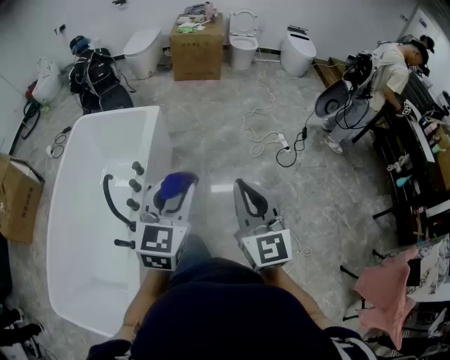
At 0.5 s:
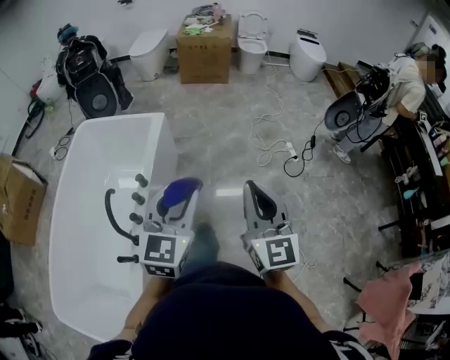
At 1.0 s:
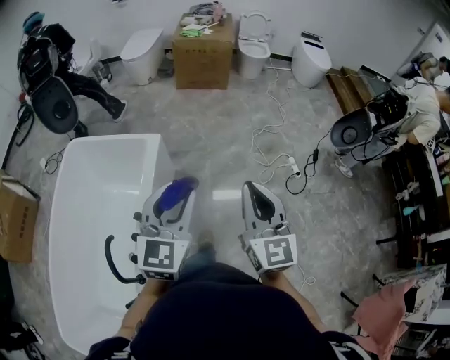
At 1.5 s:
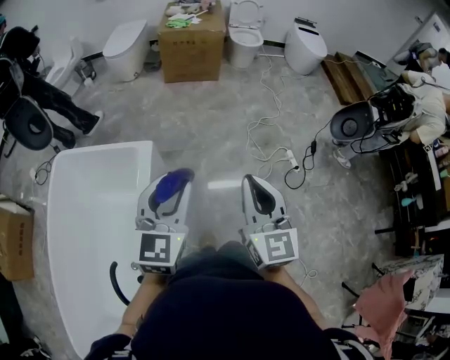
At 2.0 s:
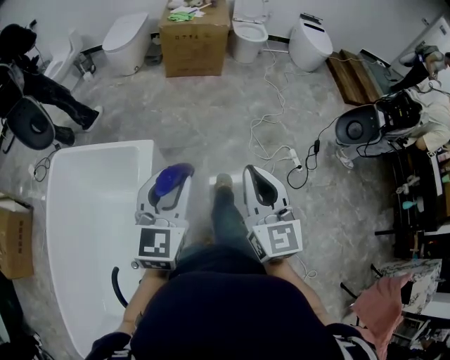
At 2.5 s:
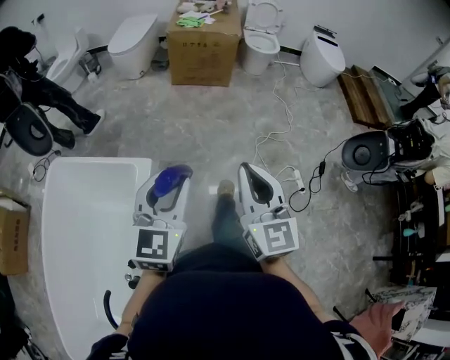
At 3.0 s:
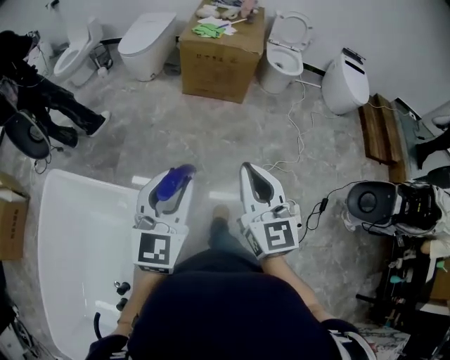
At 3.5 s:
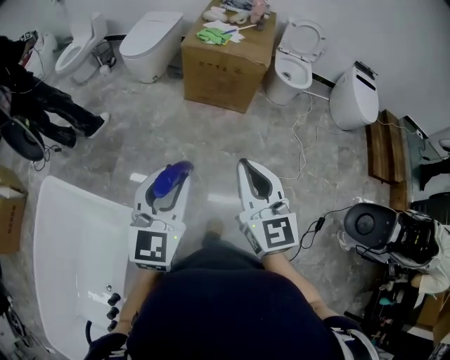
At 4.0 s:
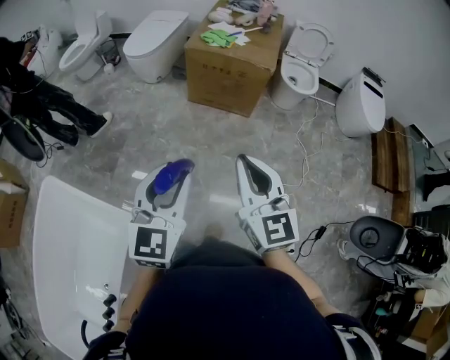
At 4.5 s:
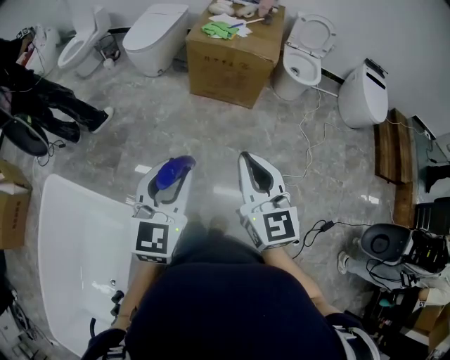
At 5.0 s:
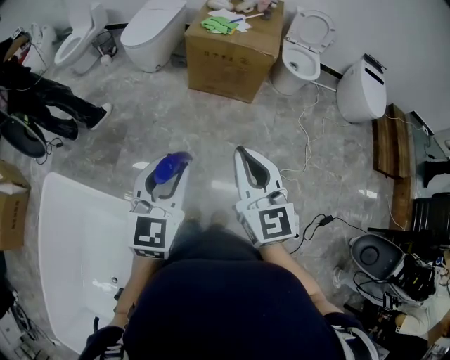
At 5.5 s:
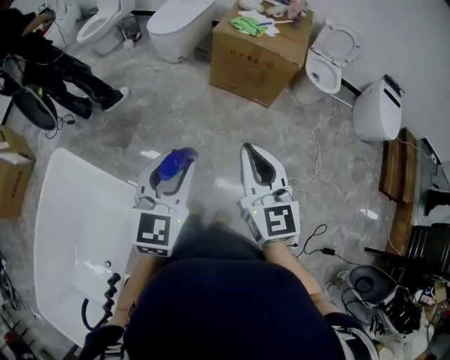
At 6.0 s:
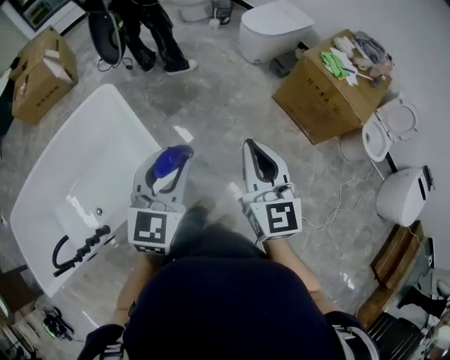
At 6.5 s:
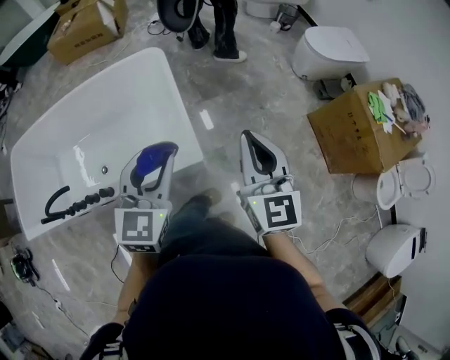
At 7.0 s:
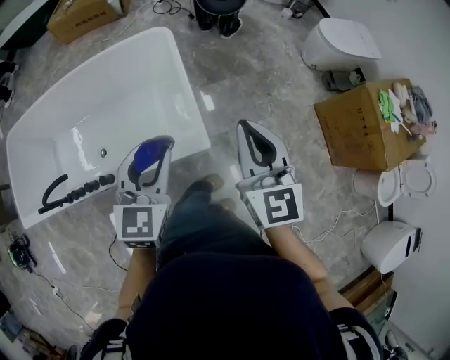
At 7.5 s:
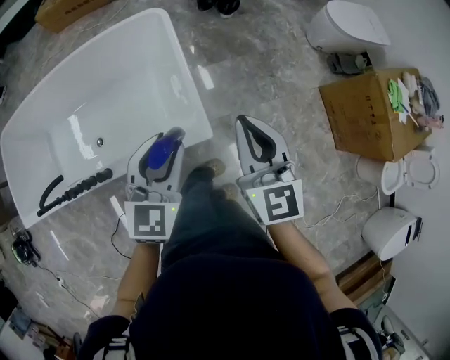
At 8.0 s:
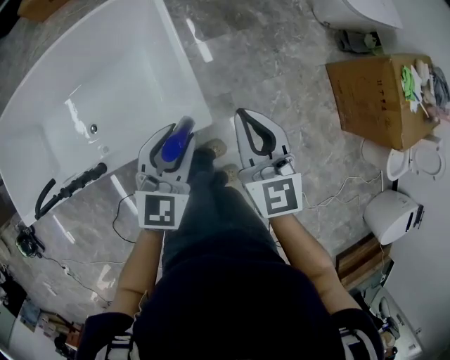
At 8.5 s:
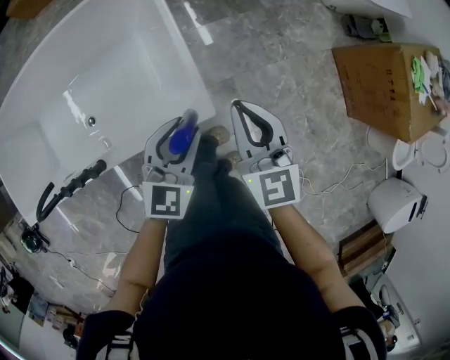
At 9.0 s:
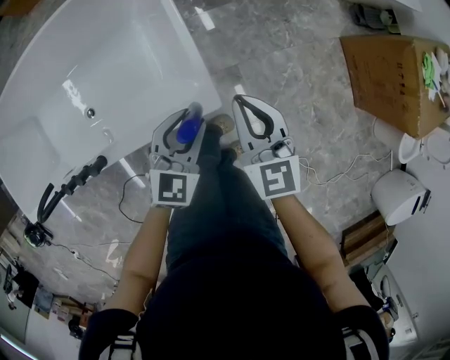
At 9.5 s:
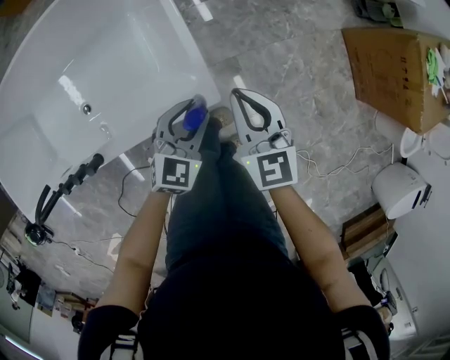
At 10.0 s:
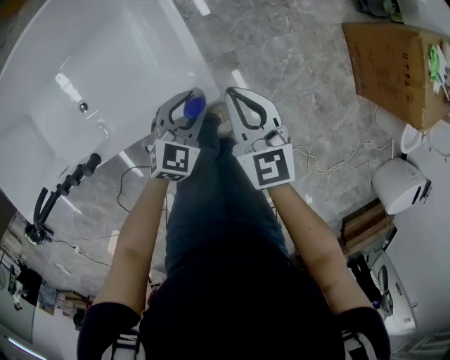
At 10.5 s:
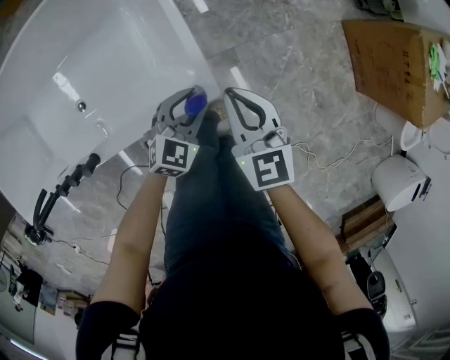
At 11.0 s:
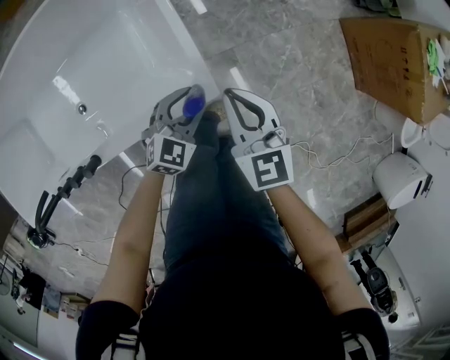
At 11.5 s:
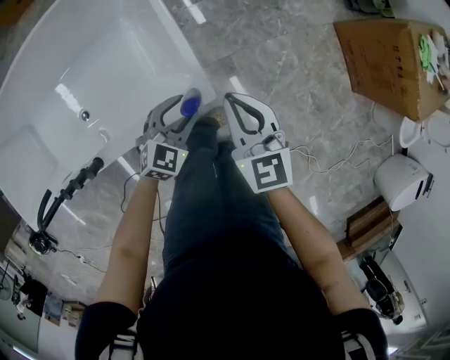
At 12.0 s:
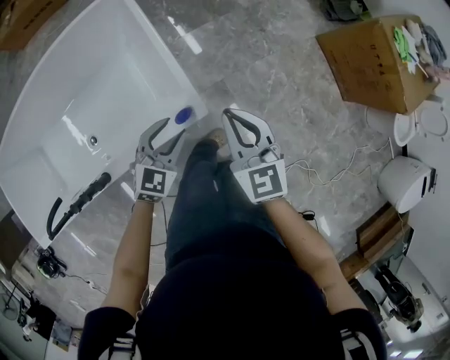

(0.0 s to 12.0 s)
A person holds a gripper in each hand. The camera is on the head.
0.0 s - 2.0 s: The two grippers travel together, forward, roughly 50 cm.
2.0 s - 4.0 s: The two grippers travel together, forward, about 50 cm. The right gripper changes its angle by about 20 degrees.
4.0 s - 6.0 s: The right gripper shifts by roughly 20 cm, and rotates approximately 30 degrees. Meanwhile the left gripper changes place by roughly 20 cm, and swivels about 30 degrees.
6.0 s - 8.0 s: The left gripper is displaced downward by roughly 15 cm. Meanwhile the right gripper moves approximately 25 cm, and turns by approximately 30 degrees.
8.0 s - 10.0 s: The two grippers go some 20 cm downward.
10.0 s - 12.0 s: Both grippers travel together upward, about 10 cm.

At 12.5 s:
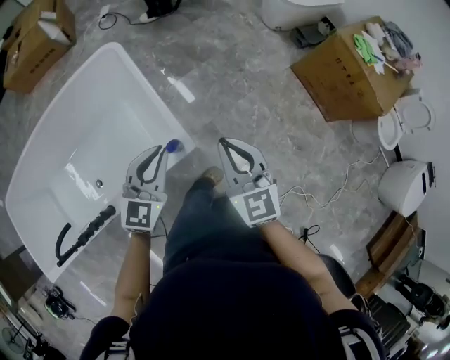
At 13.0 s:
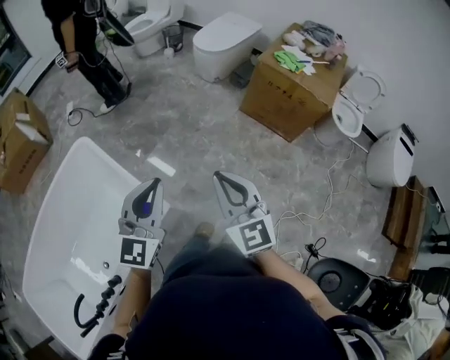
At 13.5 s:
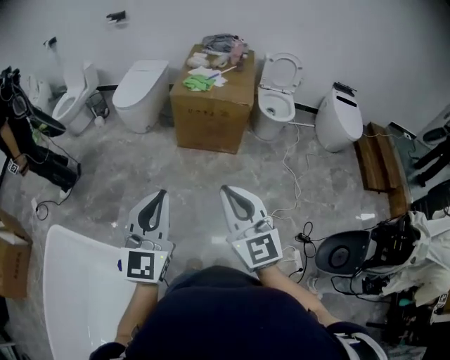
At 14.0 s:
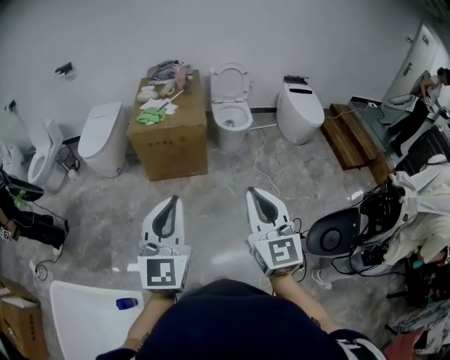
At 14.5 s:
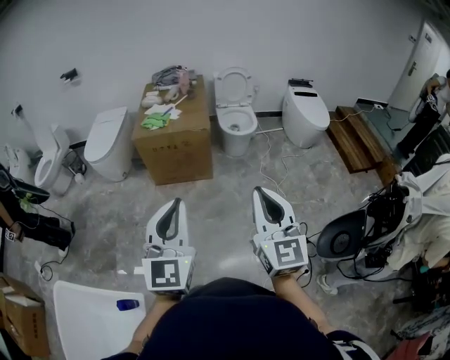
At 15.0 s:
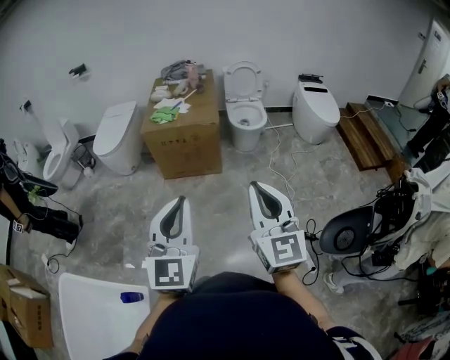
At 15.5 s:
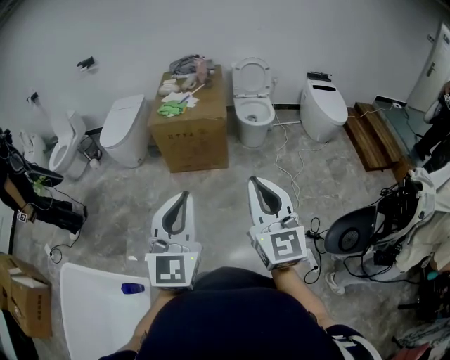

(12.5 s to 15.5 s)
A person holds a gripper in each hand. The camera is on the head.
12.5 s - 14.0 s: The two grippers travel together, some 50 cm. The left gripper swivels some 50 degrees. Meanwhile the right gripper turns by roughly 70 degrees.
14.0 s - 15.5 s: The grippers stay close to where they were, moving slightly.

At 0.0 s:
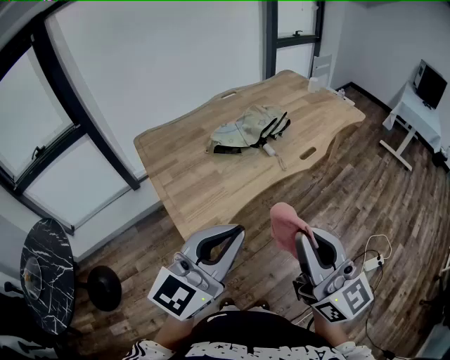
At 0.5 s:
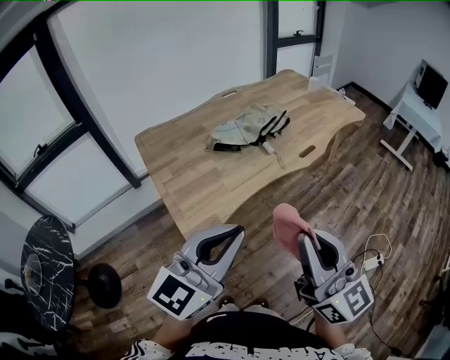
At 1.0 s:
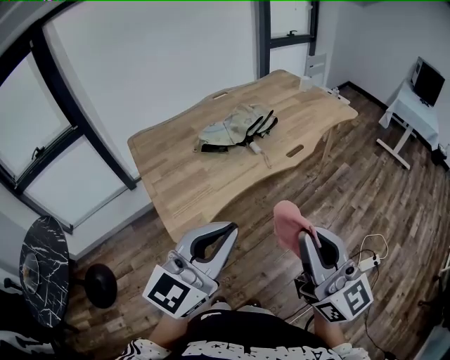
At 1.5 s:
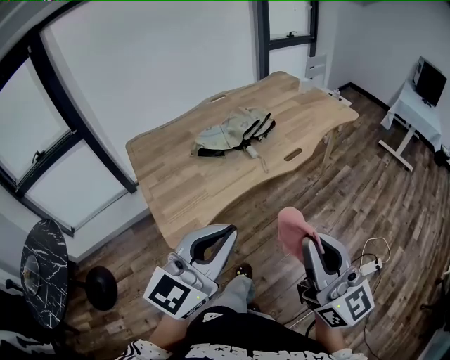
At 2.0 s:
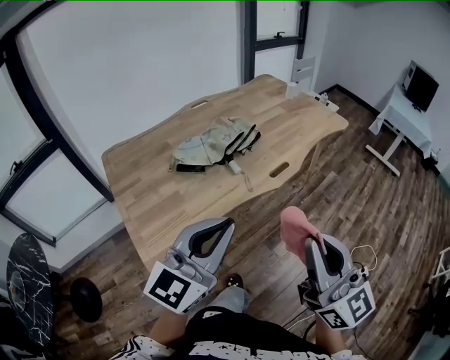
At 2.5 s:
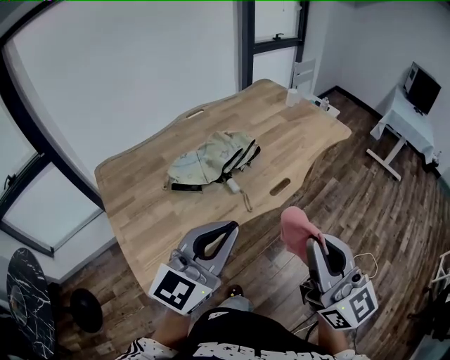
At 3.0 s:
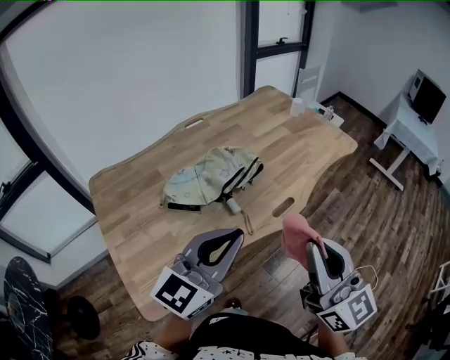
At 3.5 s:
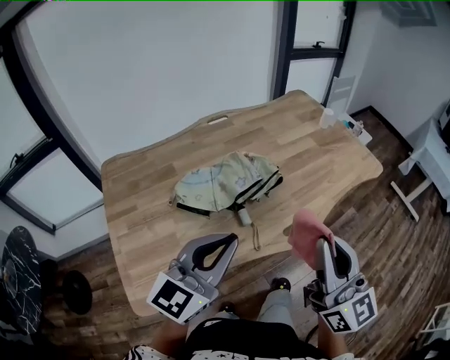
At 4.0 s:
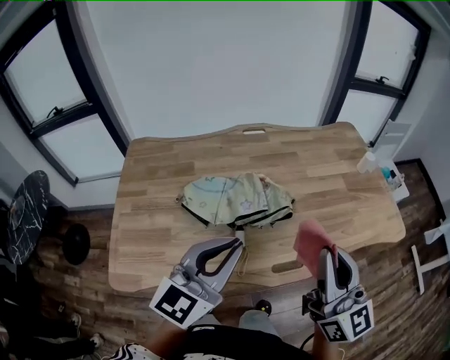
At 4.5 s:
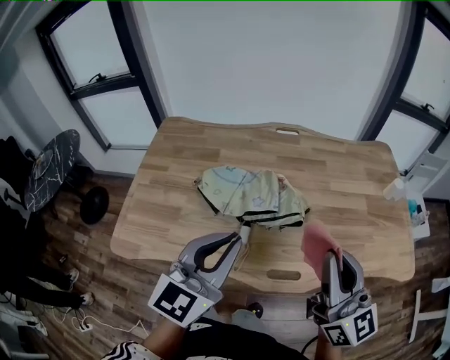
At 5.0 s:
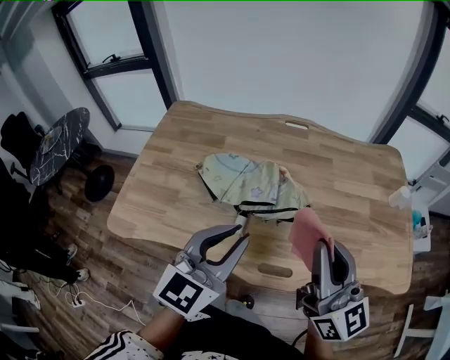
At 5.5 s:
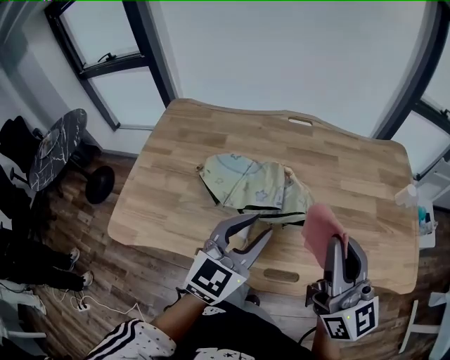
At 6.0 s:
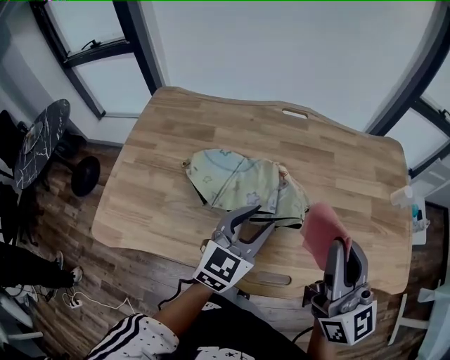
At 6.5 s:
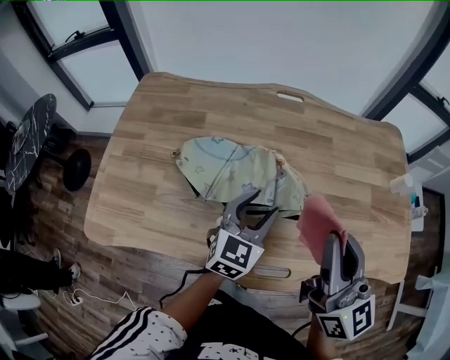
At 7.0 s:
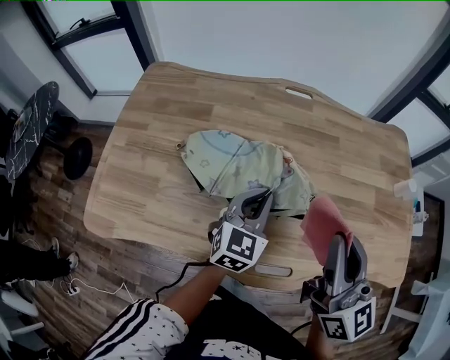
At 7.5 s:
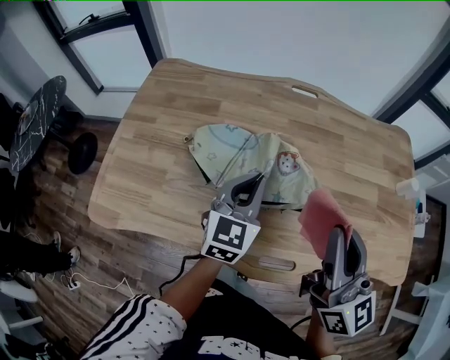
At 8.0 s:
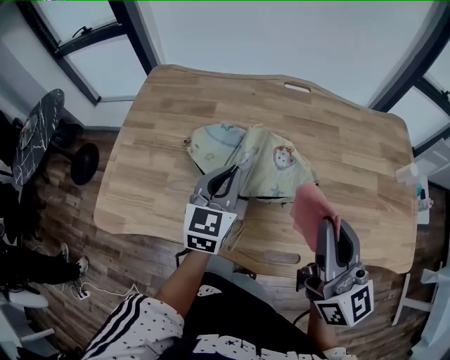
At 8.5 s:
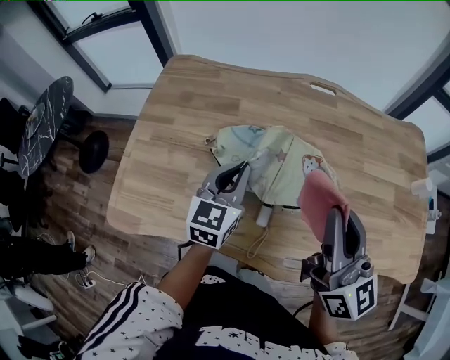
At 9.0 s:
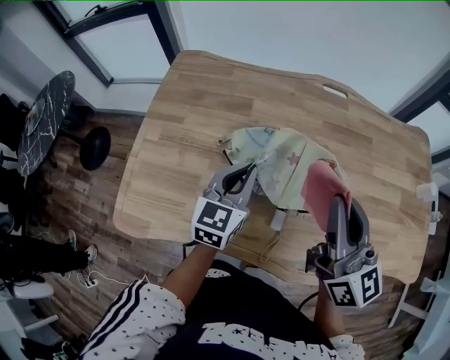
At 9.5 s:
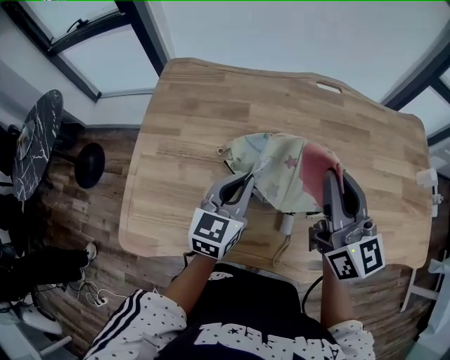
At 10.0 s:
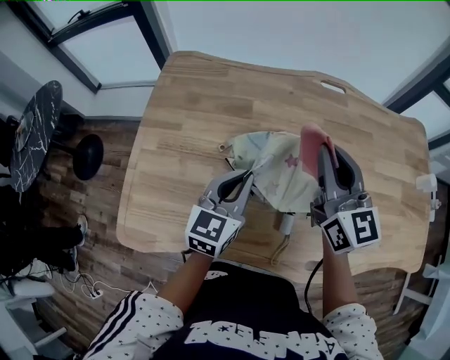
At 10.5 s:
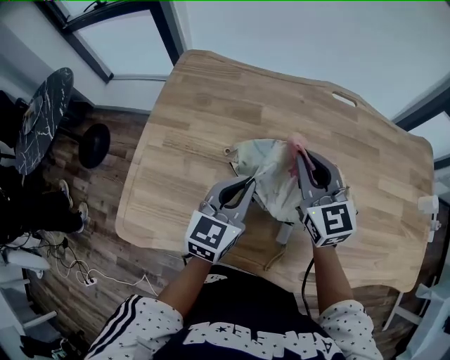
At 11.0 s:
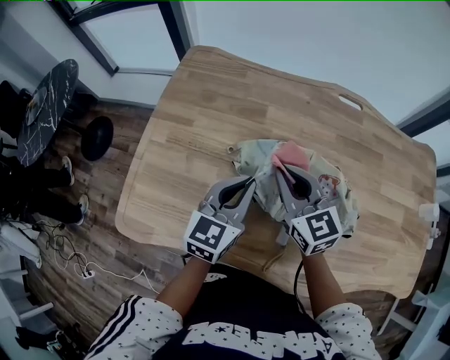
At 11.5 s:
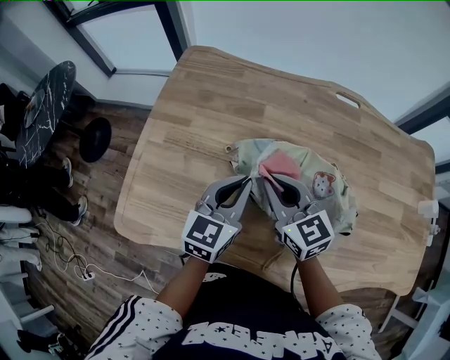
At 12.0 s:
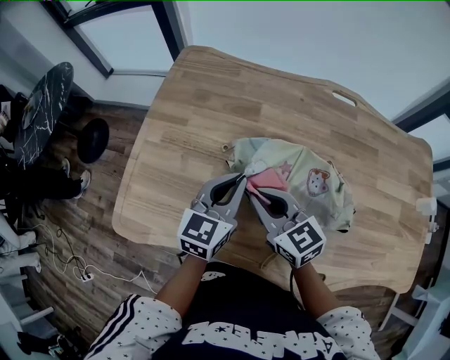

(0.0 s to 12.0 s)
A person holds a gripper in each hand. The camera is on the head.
0.0 s - 2.0 s: The left gripper heads forward and to the right, covering roughly 15 cm, while the right gripper heads to the right and forward, covering some 15 cm.
2.0 s - 4.0 s: The right gripper moves some 40 cm, and changes its angle by approximately 20 degrees; the left gripper changes place by approximately 30 cm, and rotates roughly 30 degrees.
4.0 s - 6.0 s: The right gripper moves forward, some 10 cm, while the left gripper travels downward, forward and to the right by roughly 20 cm, and opens up.
6.0 s - 8.0 s: The left gripper is displaced to the left by some 10 cm, and closes its fingers.
8.0 s - 10.0 s: The left gripper heads to the left, covering some 10 cm. Meanwhile the right gripper heads forward and to the left, covering roughly 25 cm.
10.0 s - 12.0 s: The right gripper shifts about 20 cm downward, to the left and backward, and rotates approximately 40 degrees.
